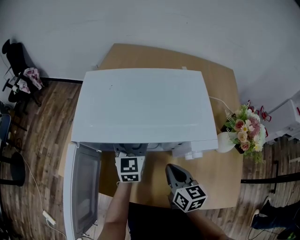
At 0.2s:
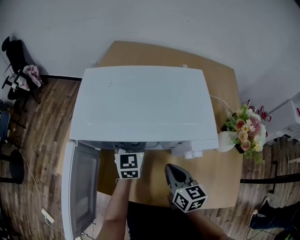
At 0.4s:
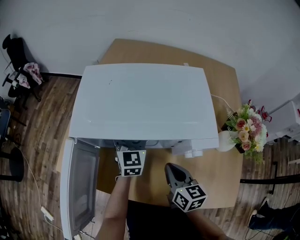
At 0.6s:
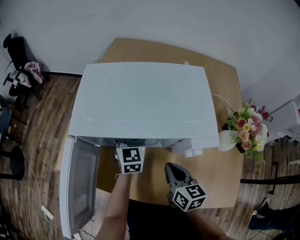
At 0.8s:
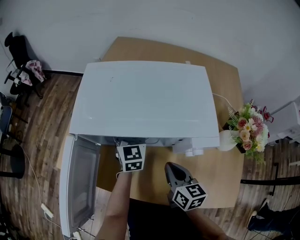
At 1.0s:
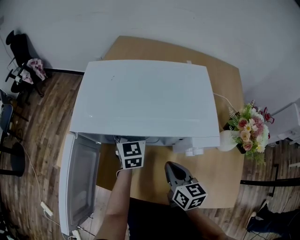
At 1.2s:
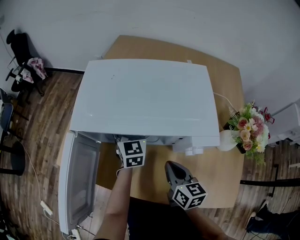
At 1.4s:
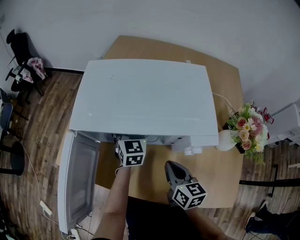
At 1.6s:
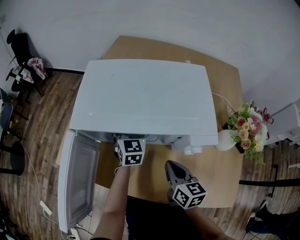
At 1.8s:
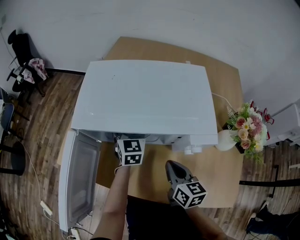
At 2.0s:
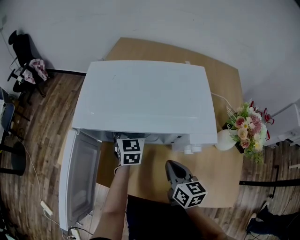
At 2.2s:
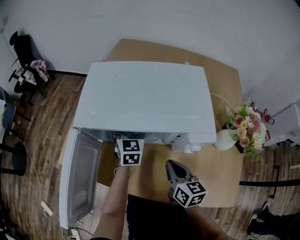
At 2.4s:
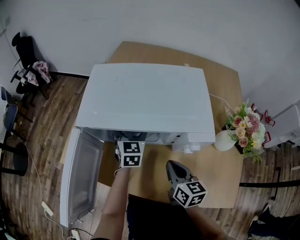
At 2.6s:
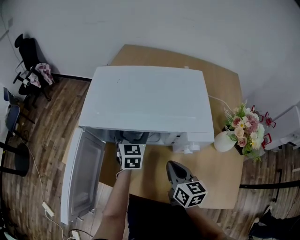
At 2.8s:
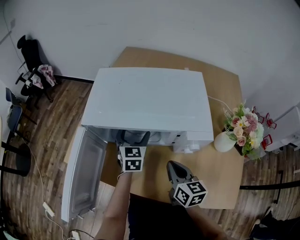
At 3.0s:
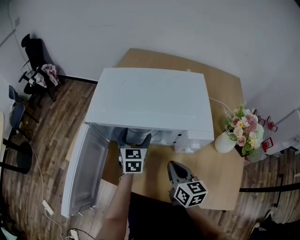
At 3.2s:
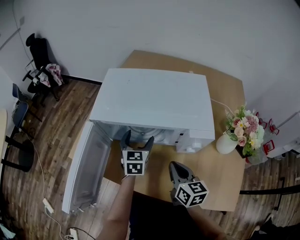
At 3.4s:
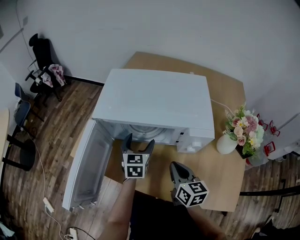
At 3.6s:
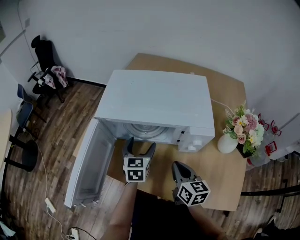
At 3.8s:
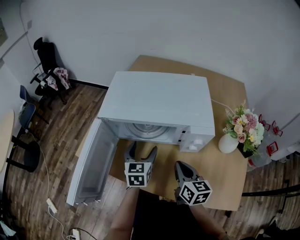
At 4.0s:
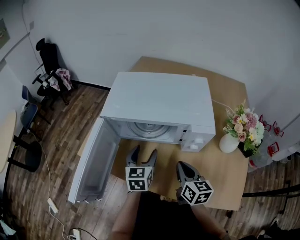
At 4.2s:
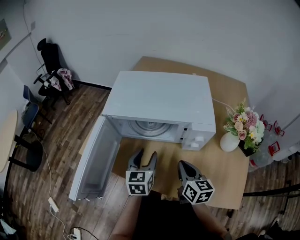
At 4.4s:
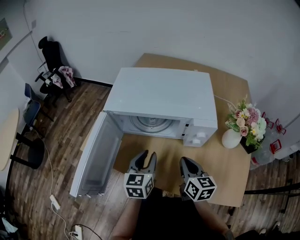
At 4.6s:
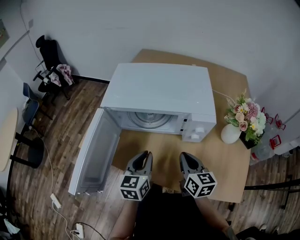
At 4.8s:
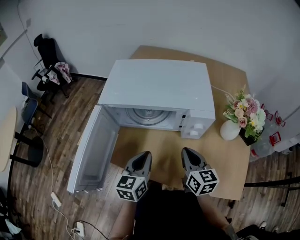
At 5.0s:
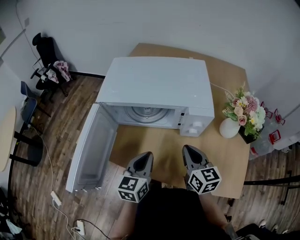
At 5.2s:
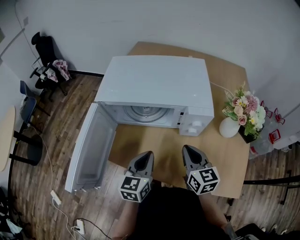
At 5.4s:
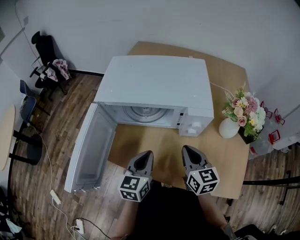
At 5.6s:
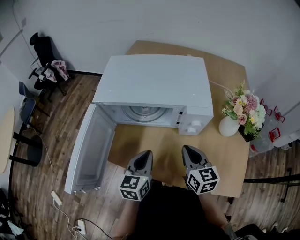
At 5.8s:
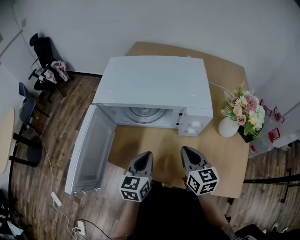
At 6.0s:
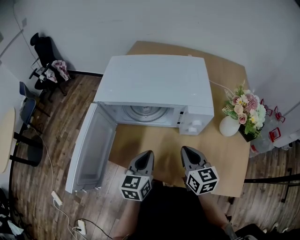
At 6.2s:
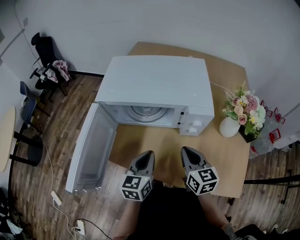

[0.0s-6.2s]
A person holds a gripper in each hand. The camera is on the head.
0.0s to 1.6s: The grippers move only a little.
1.6s to 3.2s: The left gripper shifts about 10 cm backward.
3.2s to 4.6s: The left gripper moves backward, about 15 cm, and closes its fingers.
4.6s to 6.2s: The grippers move only a little.

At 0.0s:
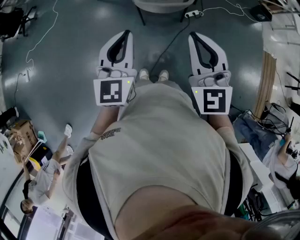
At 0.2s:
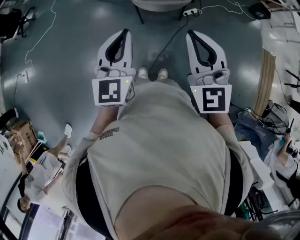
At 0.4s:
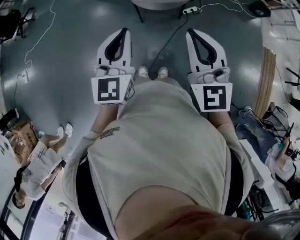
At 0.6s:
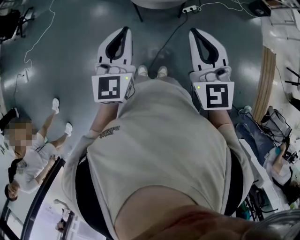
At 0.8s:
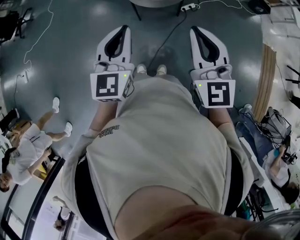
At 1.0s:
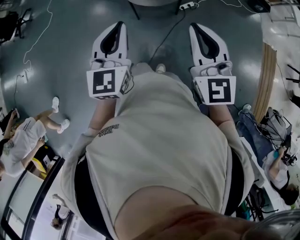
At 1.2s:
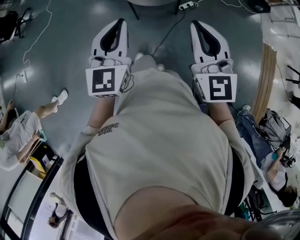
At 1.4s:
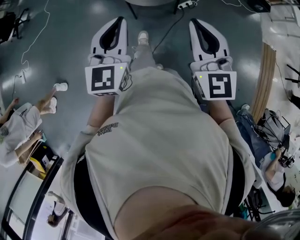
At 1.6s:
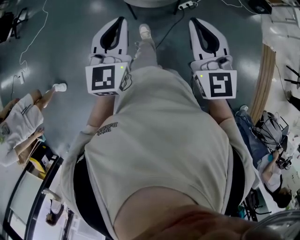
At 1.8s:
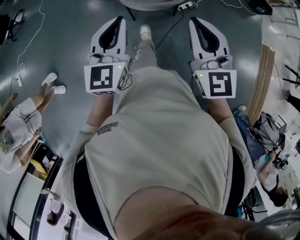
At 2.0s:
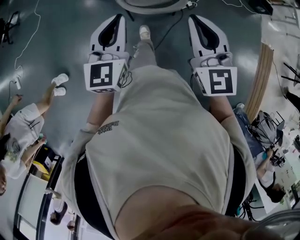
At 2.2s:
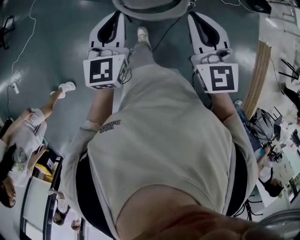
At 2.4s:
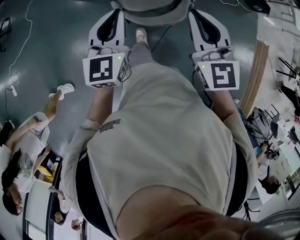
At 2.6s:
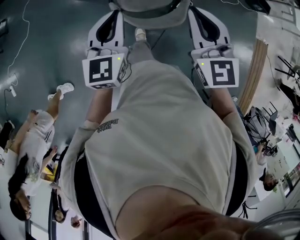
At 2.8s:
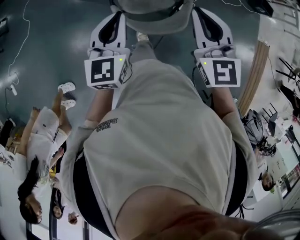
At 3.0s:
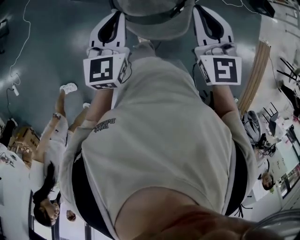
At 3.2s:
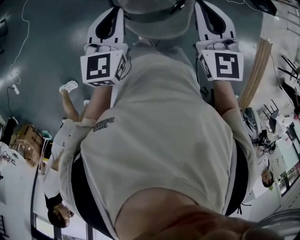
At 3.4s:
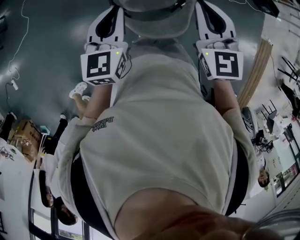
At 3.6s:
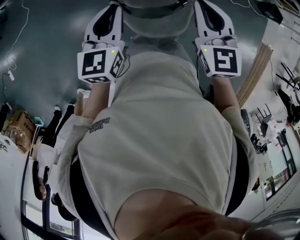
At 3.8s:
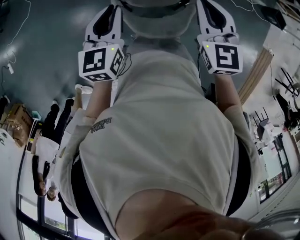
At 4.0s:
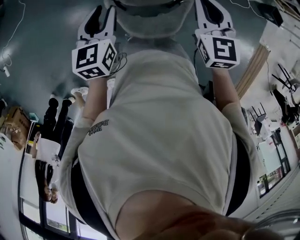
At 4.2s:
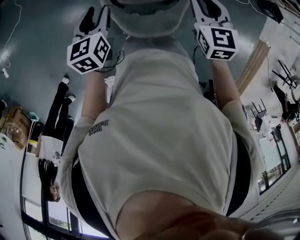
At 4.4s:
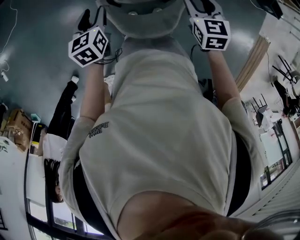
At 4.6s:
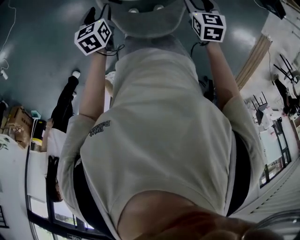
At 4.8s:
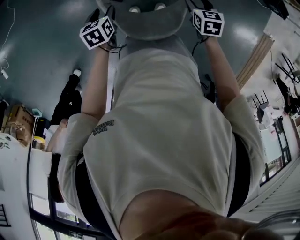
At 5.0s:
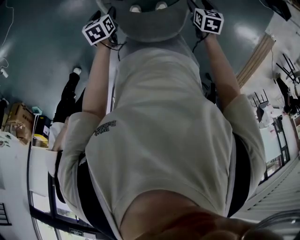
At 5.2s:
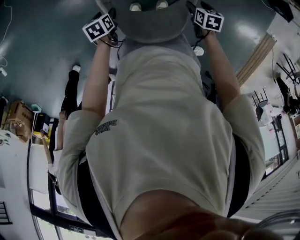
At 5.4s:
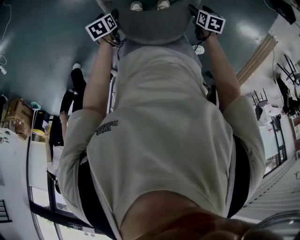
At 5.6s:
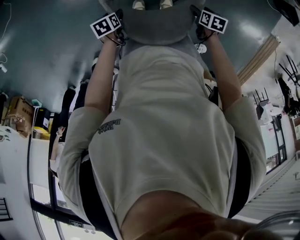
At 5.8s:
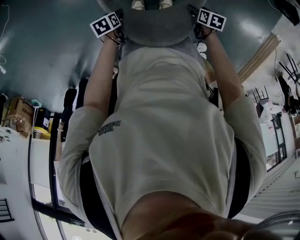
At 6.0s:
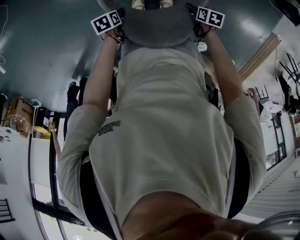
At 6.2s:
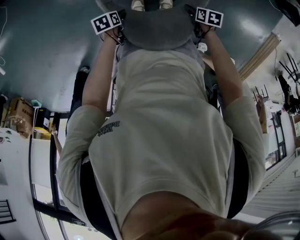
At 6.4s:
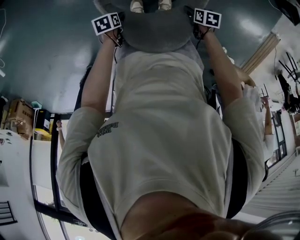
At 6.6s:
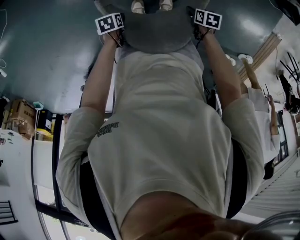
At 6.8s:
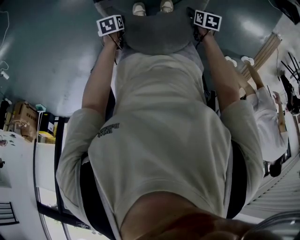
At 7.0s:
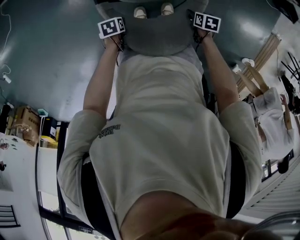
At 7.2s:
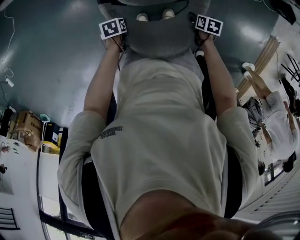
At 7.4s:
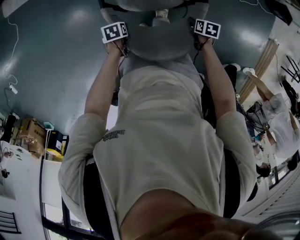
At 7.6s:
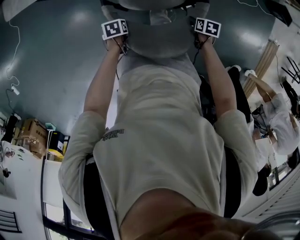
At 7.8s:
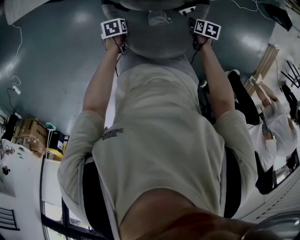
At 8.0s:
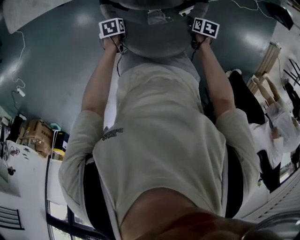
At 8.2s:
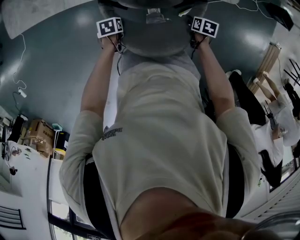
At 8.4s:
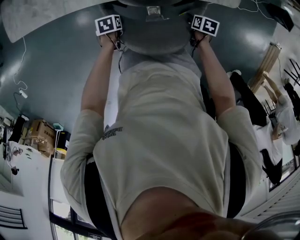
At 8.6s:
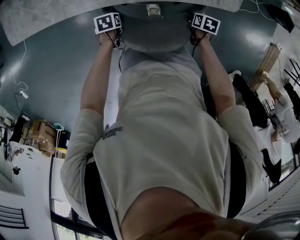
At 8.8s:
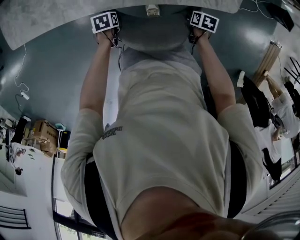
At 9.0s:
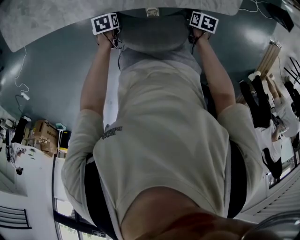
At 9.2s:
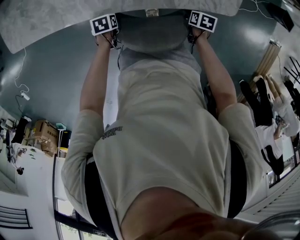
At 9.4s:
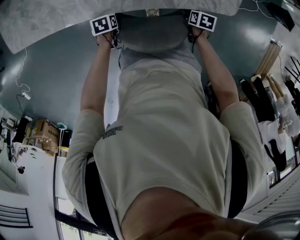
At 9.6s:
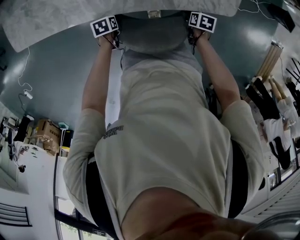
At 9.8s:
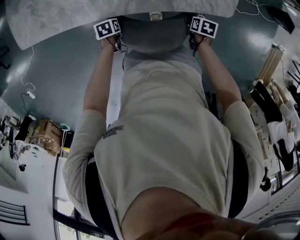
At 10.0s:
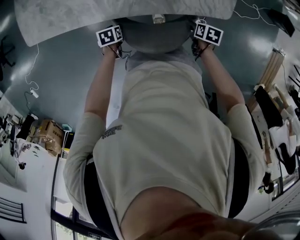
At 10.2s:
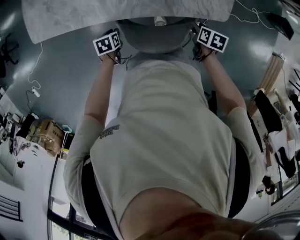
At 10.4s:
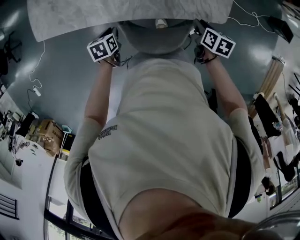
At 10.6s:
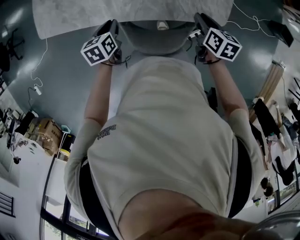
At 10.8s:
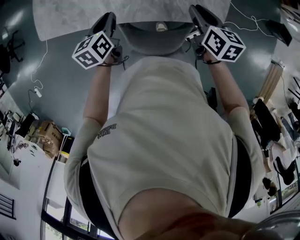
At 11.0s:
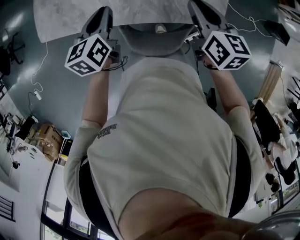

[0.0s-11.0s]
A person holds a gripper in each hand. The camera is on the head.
0.0s to 1.6s: The right gripper heads to the right, forward and downward, covering some 10 cm, while the left gripper travels forward and to the right by some 10 cm.
1.6s to 3.2s: Both grippers move forward, about 35 cm.
3.2s to 4.8s: Both grippers move downward, some 30 cm. The right gripper angles its fingers downward, by roughly 40 degrees, and opens up. Meanwhile the left gripper tips its fingers downward by roughly 40 degrees, and opens.
4.8s to 6.2s: The two grippers go about 20 cm downward. The right gripper rotates roughly 30 degrees. Meanwhile the left gripper swivels roughly 30 degrees.
6.2s to 7.8s: The left gripper moves about 20 cm. The right gripper ends up some 15 cm from where it was, and closes.
7.8s to 9.4s: The right gripper shifts by some 15 cm, while the left gripper ends up roughly 20 cm from where it was.
9.4s to 11.0s: The two grippers go approximately 40 cm upward. The right gripper angles its fingers upward, by roughly 50 degrees, and closes its fingers; the left gripper points its fingers approximately 50 degrees further upward, and closes.

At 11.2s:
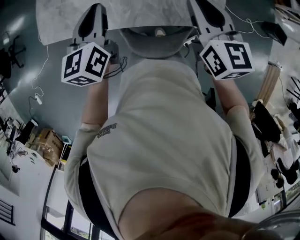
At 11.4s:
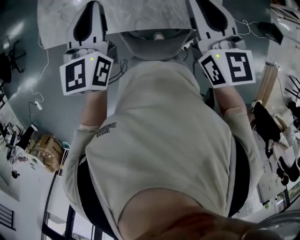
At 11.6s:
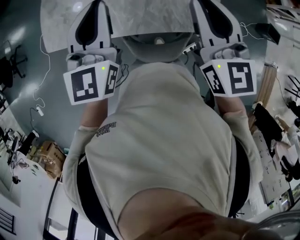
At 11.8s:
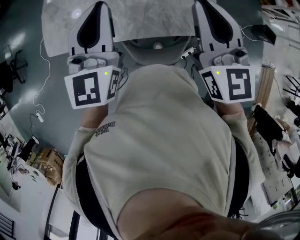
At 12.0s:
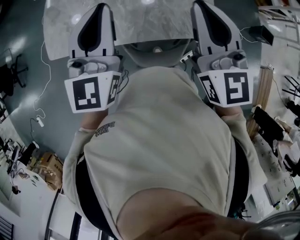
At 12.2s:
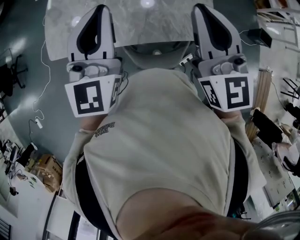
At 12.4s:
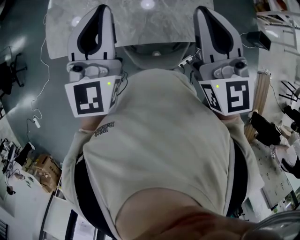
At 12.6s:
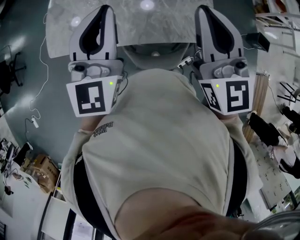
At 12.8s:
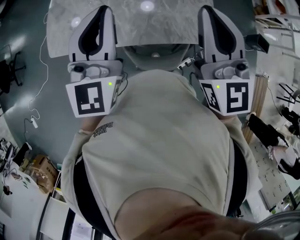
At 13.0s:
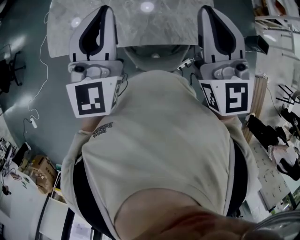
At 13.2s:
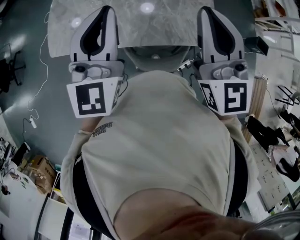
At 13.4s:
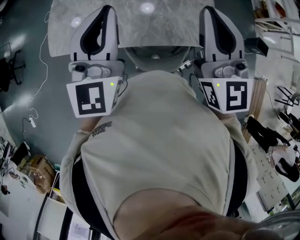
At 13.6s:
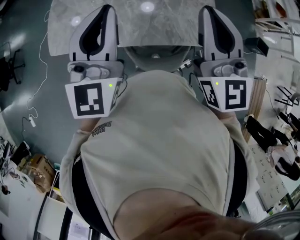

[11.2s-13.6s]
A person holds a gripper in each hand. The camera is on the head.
11.2s to 12.4s: The right gripper heads upward and backward, covering approximately 20 cm, and rotates about 30 degrees. The left gripper heads upward, covering about 20 cm, and turns by approximately 40 degrees.
12.4s to 13.6s: The grippers stay close to where they were, moving slightly.

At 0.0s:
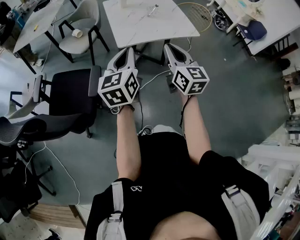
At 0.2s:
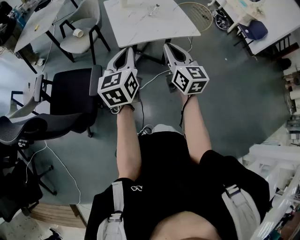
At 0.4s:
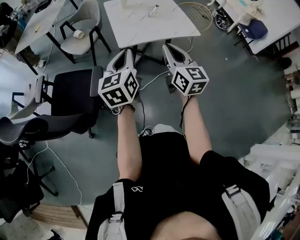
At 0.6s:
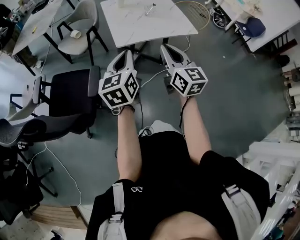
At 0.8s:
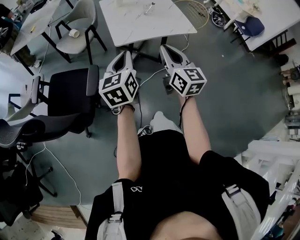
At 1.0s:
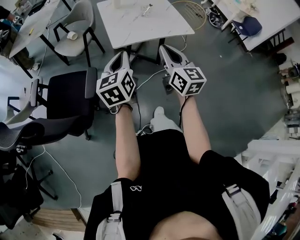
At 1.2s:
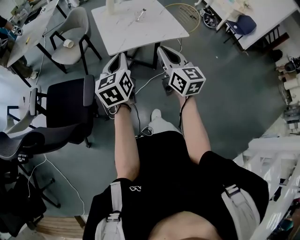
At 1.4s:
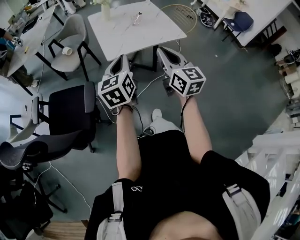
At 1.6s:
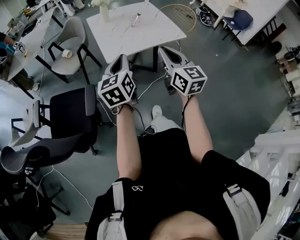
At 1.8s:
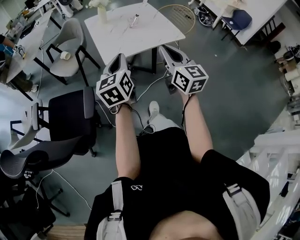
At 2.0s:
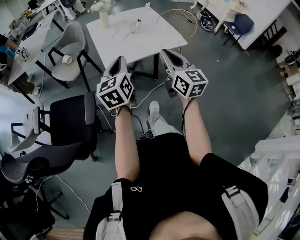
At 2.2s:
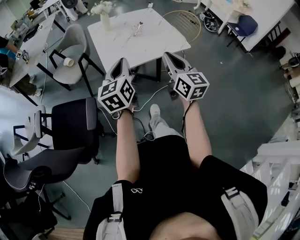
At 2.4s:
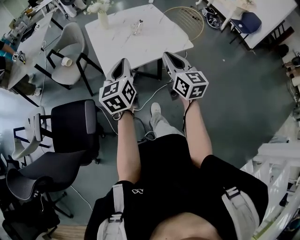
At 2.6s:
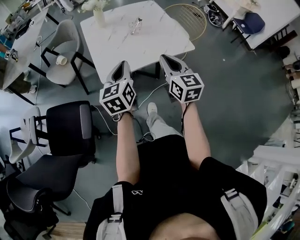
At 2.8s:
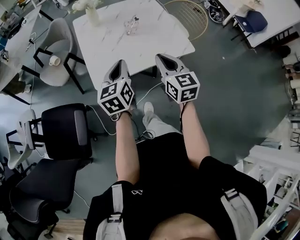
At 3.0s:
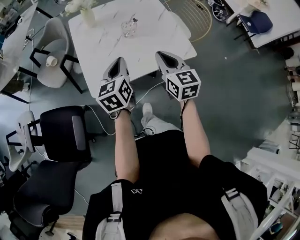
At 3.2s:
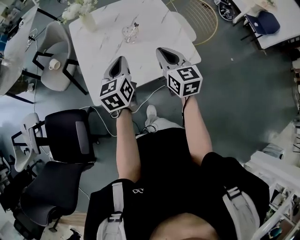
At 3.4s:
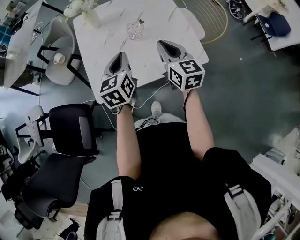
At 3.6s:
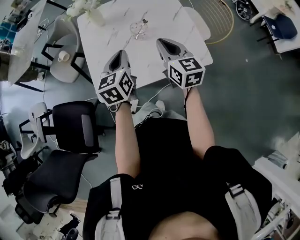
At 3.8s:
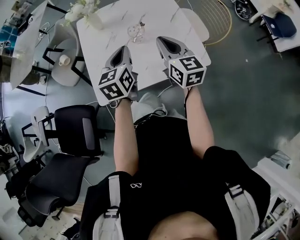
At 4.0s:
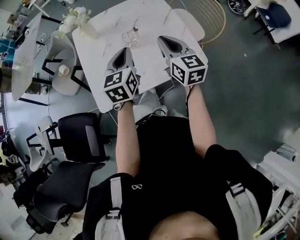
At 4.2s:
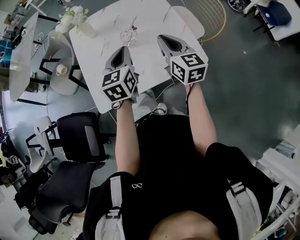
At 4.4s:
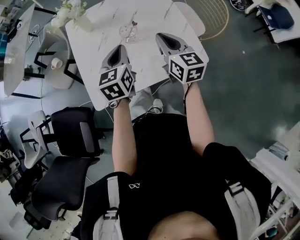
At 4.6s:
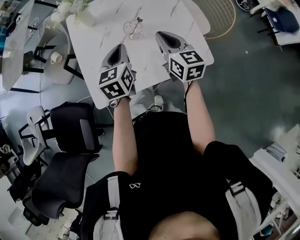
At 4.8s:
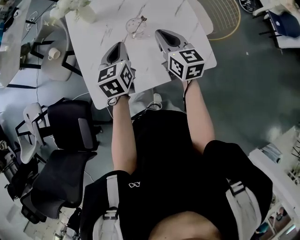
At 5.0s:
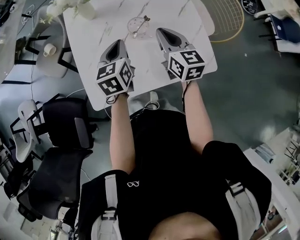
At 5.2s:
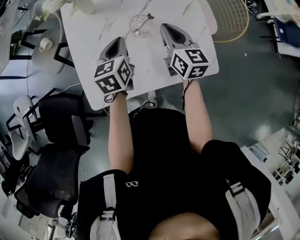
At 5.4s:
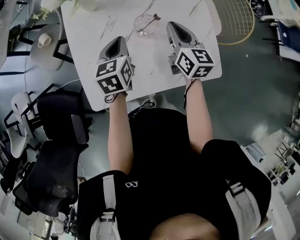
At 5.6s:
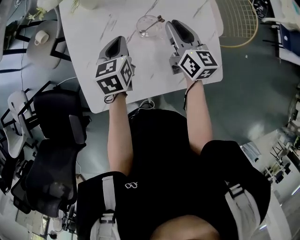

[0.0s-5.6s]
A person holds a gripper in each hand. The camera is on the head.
0.0s to 1.4s: The grippers stay close to where they were, moving slightly.
1.4s to 2.8s: The two grippers go some 20 cm forward and downward.
2.8s to 4.2s: Both grippers move forward and to the right, roughly 15 cm.
4.2s to 5.6s: The left gripper moves downward, forward and to the left, roughly 15 cm, and swivels about 20 degrees, while the right gripper shifts some 15 cm forward and downward.
